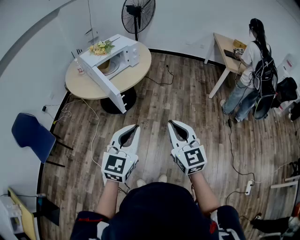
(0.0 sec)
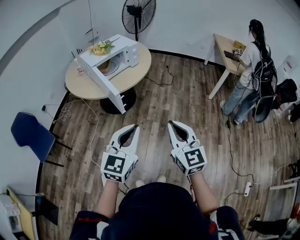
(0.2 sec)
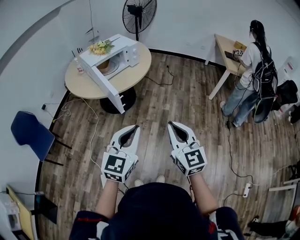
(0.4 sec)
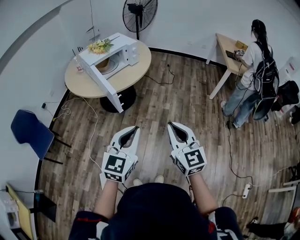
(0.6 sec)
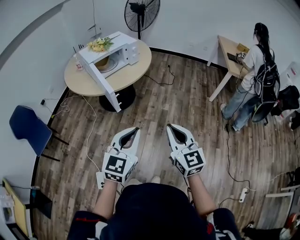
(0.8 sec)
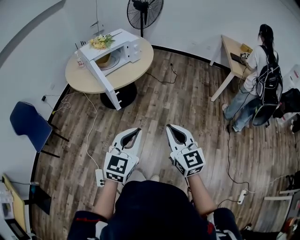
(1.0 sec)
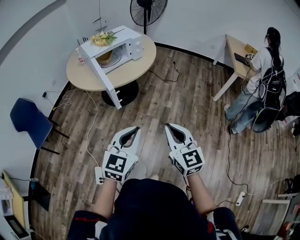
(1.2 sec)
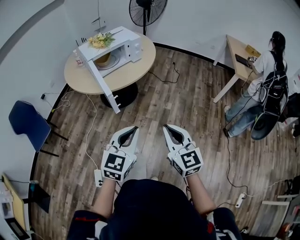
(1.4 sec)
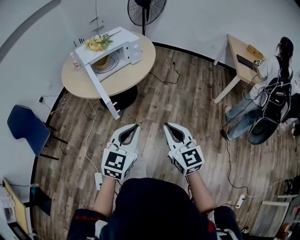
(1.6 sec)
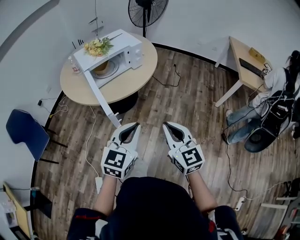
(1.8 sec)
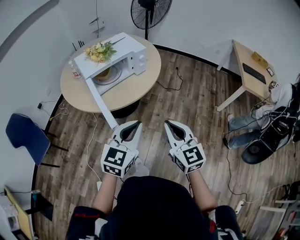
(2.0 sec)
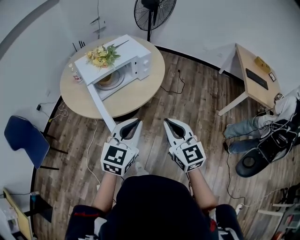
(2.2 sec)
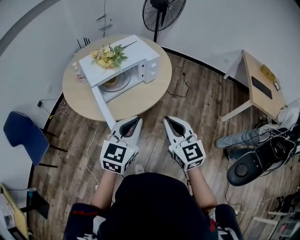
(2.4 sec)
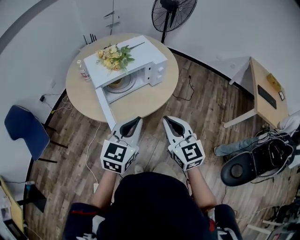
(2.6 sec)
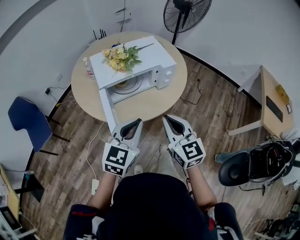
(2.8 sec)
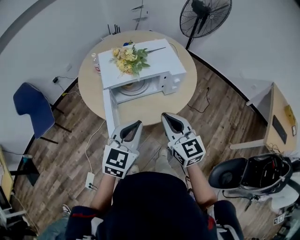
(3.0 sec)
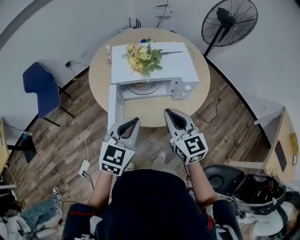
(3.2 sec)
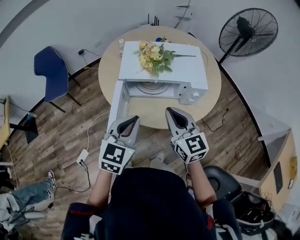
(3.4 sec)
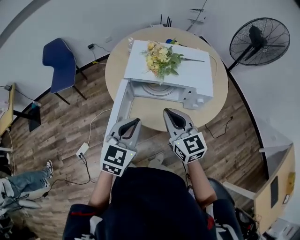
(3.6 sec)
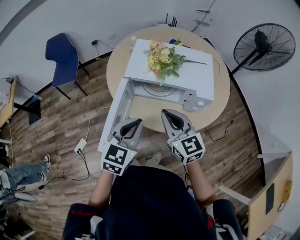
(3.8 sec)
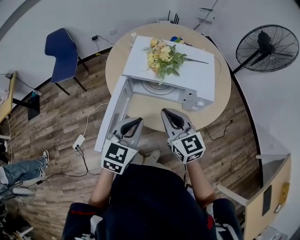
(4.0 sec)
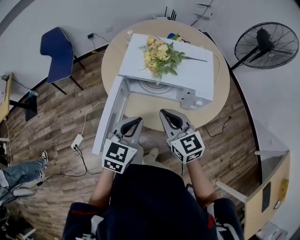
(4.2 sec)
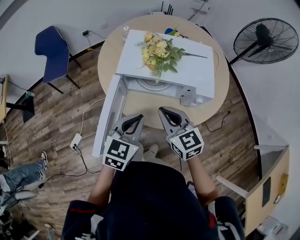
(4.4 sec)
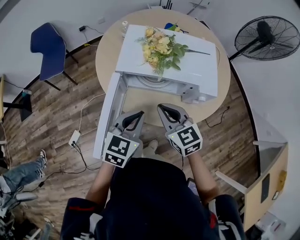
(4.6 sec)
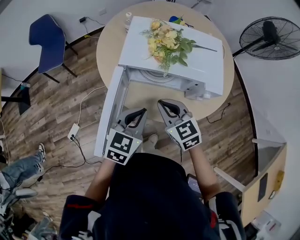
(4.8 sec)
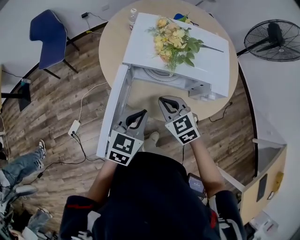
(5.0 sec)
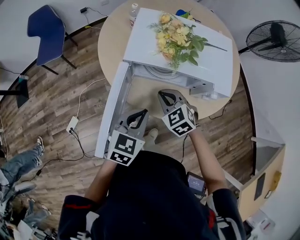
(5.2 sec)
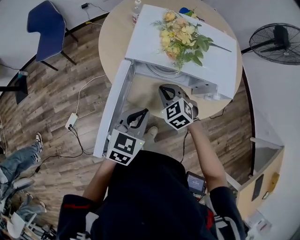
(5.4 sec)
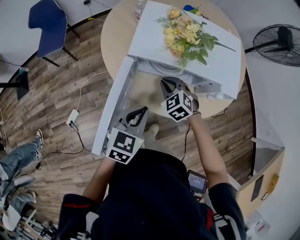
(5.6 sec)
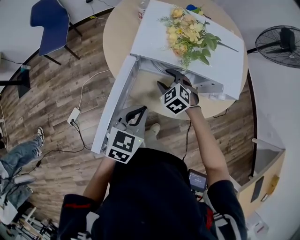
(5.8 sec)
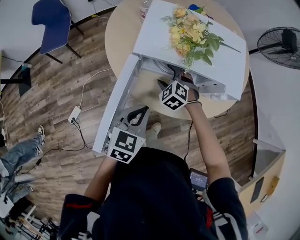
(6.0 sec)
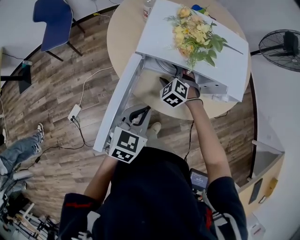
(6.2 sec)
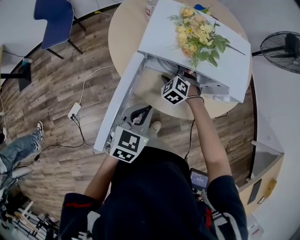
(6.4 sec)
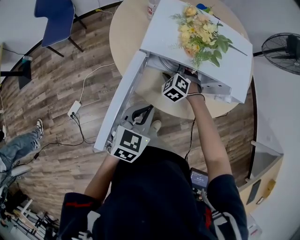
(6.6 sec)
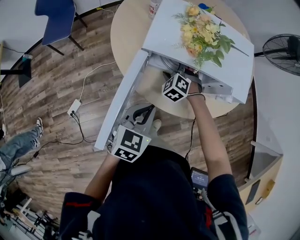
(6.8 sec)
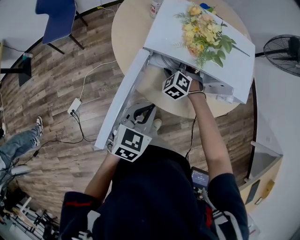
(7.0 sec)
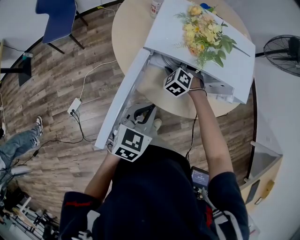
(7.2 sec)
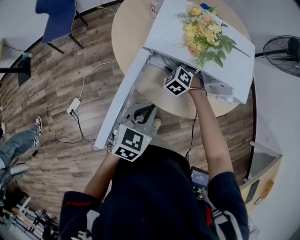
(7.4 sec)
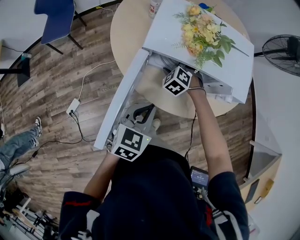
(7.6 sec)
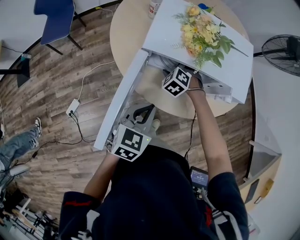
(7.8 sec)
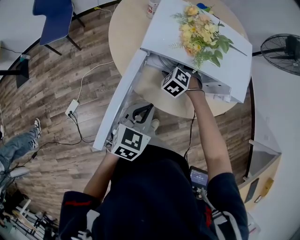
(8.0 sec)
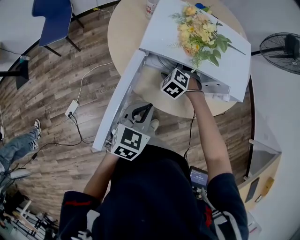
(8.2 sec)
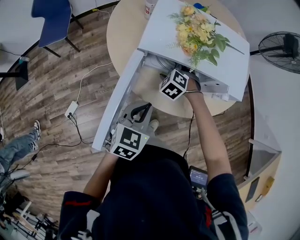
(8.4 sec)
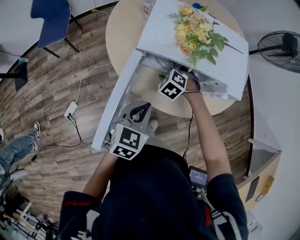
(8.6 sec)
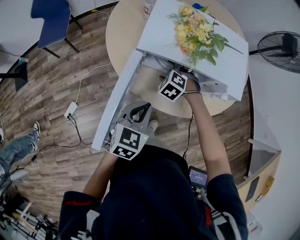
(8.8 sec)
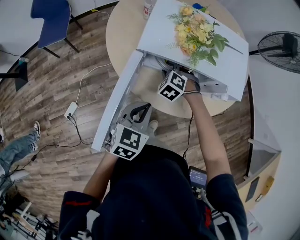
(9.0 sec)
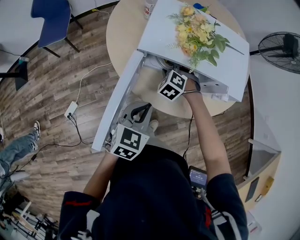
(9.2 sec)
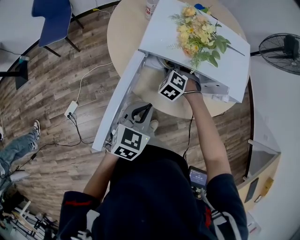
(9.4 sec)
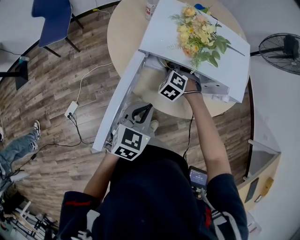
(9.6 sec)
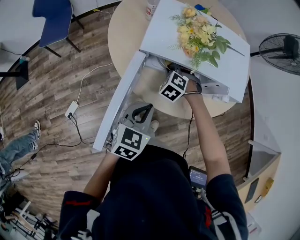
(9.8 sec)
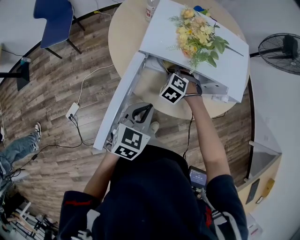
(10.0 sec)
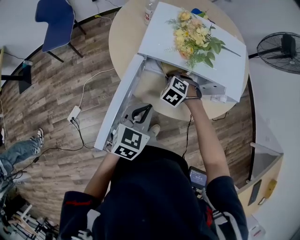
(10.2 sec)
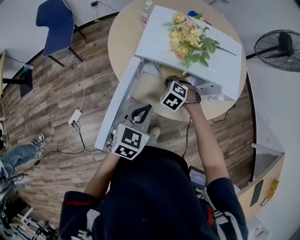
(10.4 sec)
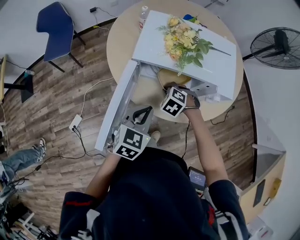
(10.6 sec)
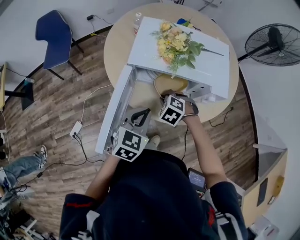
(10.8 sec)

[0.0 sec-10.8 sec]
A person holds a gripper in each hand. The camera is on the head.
0.0 sec to 1.6 sec: The two grippers go some 15 cm forward and downward.
1.6 sec to 3.0 sec: Both grippers move forward, roughly 40 cm. The left gripper rotates roughly 20 degrees, while the right gripper turns by about 20 degrees.
3.0 sec to 4.6 sec: The left gripper changes place by roughly 15 cm, and turns by roughly 30 degrees; the right gripper ends up approximately 15 cm from where it was, and turns by approximately 30 degrees.
4.6 sec to 6.2 sec: The left gripper shifts some 10 cm downward. Meanwhile the right gripper shifts approximately 25 cm downward and forward, turns by roughly 50 degrees, and opens its fingers.
6.2 sec to 7.8 sec: The grippers move only a little.
7.8 sec to 9.2 sec: The right gripper closes up.
9.2 sec to 10.8 sec: The right gripper moves backward, some 10 cm, and closes.

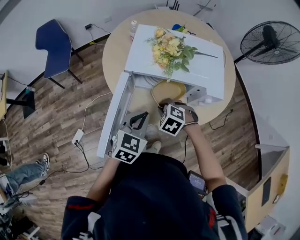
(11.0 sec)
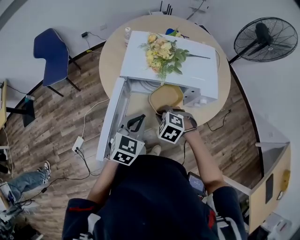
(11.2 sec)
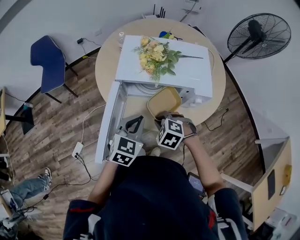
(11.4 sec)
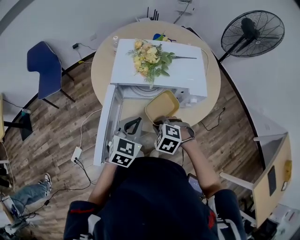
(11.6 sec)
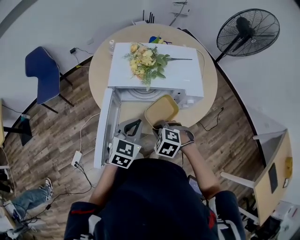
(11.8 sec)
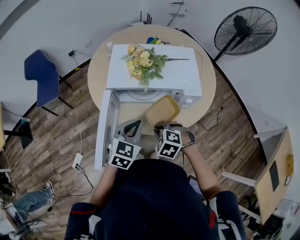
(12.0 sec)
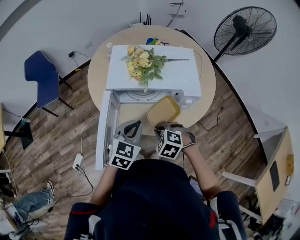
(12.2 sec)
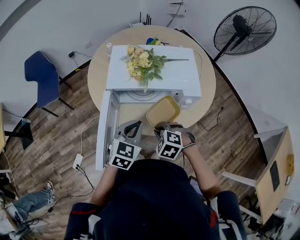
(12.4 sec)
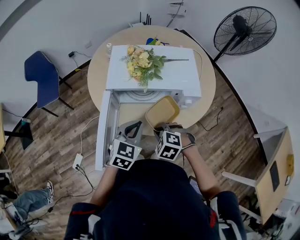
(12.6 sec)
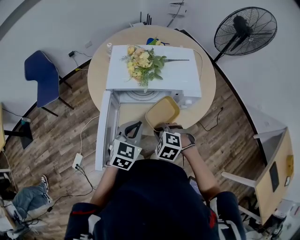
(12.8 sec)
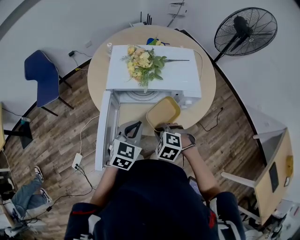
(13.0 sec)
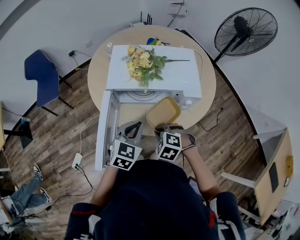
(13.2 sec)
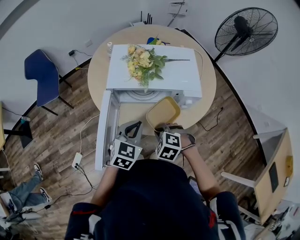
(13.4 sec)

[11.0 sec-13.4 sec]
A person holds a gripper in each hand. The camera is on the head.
11.0 sec to 12.2 sec: The right gripper is displaced backward by some 10 cm.
12.2 sec to 13.4 sec: Neither gripper changes place.

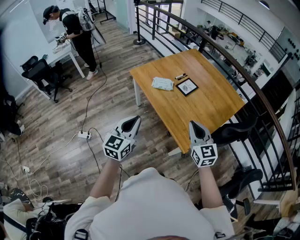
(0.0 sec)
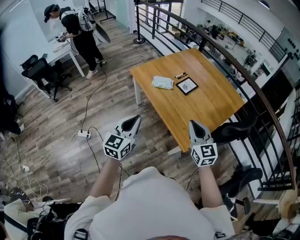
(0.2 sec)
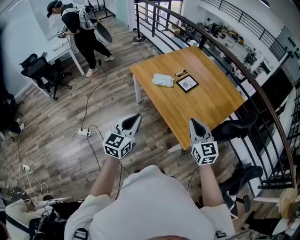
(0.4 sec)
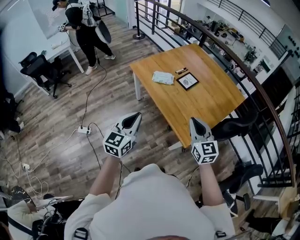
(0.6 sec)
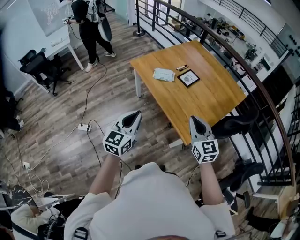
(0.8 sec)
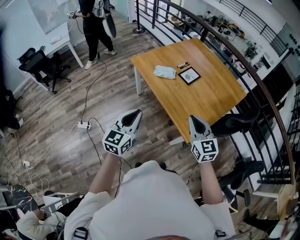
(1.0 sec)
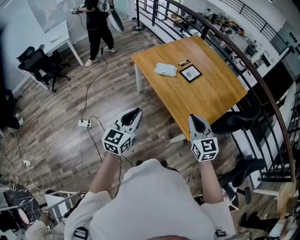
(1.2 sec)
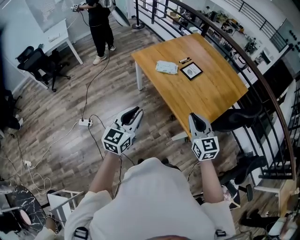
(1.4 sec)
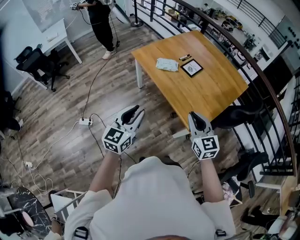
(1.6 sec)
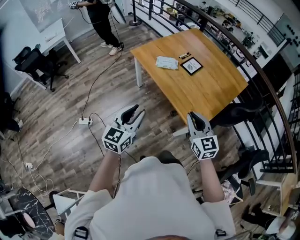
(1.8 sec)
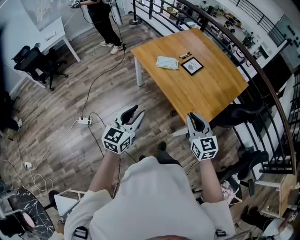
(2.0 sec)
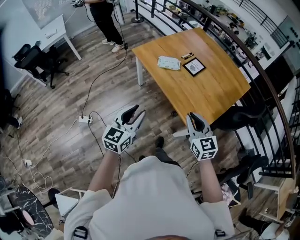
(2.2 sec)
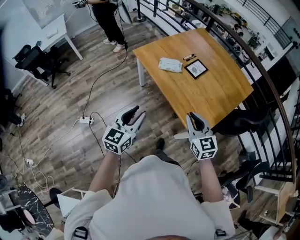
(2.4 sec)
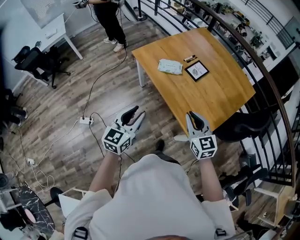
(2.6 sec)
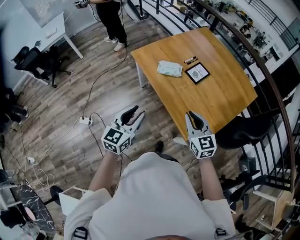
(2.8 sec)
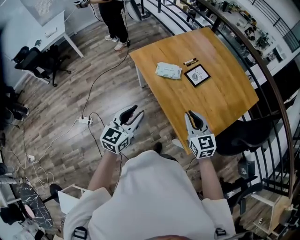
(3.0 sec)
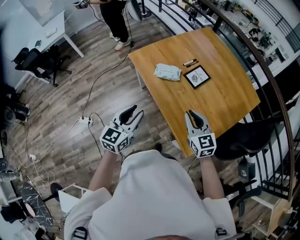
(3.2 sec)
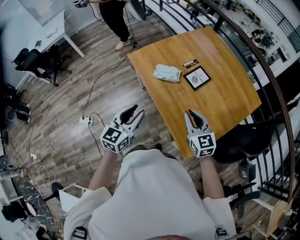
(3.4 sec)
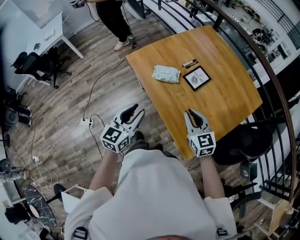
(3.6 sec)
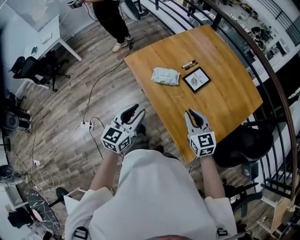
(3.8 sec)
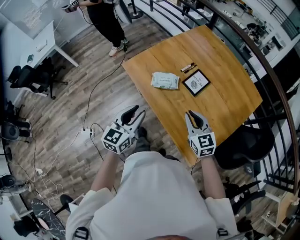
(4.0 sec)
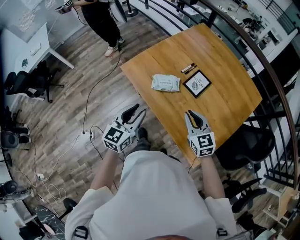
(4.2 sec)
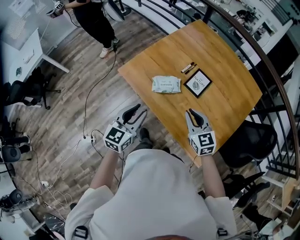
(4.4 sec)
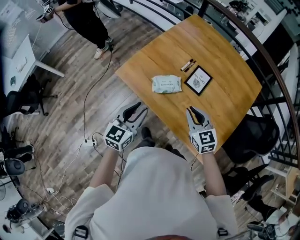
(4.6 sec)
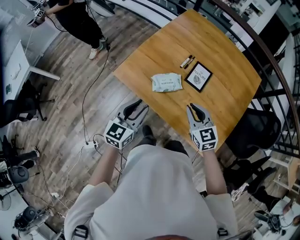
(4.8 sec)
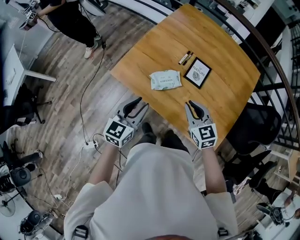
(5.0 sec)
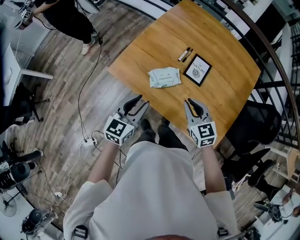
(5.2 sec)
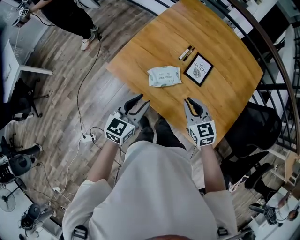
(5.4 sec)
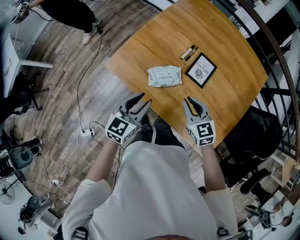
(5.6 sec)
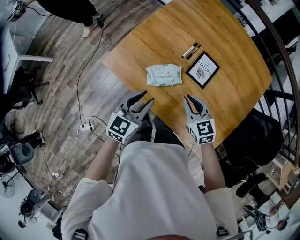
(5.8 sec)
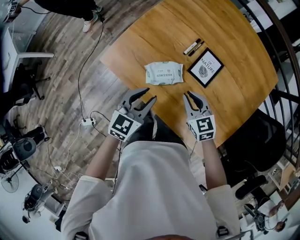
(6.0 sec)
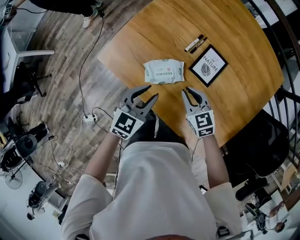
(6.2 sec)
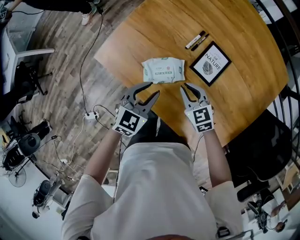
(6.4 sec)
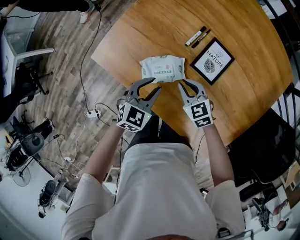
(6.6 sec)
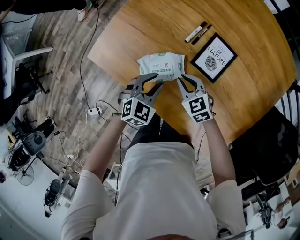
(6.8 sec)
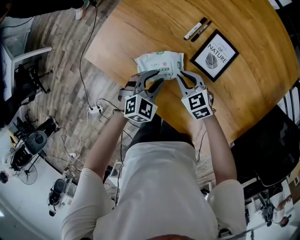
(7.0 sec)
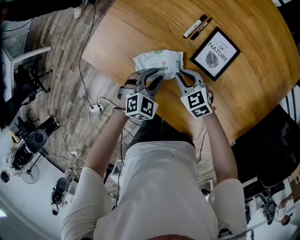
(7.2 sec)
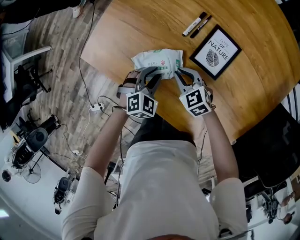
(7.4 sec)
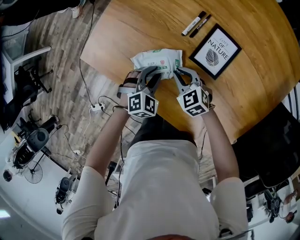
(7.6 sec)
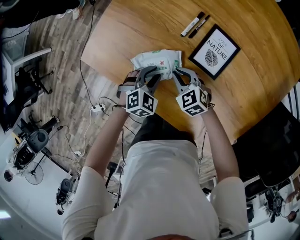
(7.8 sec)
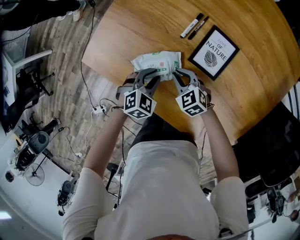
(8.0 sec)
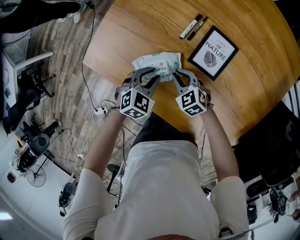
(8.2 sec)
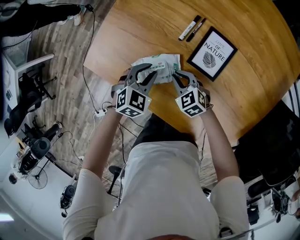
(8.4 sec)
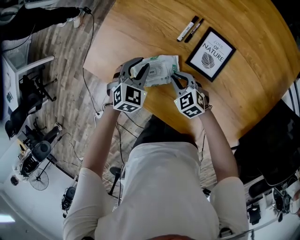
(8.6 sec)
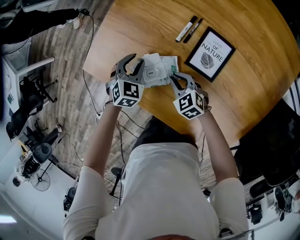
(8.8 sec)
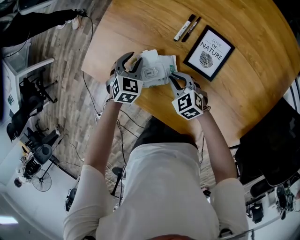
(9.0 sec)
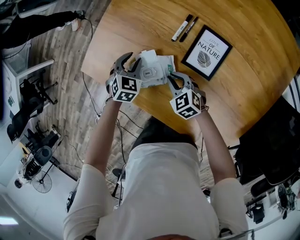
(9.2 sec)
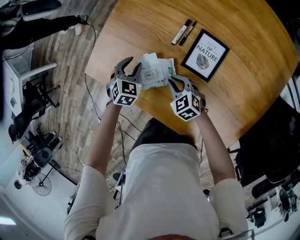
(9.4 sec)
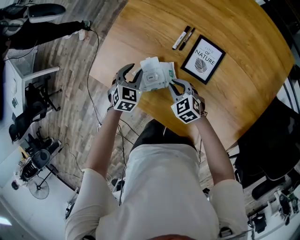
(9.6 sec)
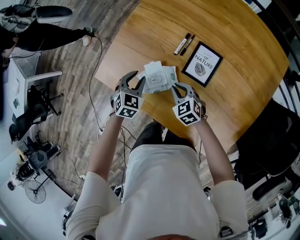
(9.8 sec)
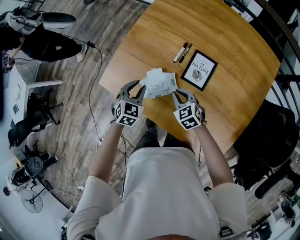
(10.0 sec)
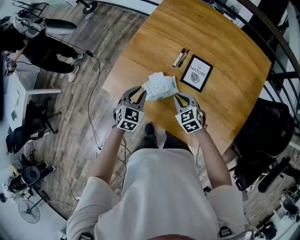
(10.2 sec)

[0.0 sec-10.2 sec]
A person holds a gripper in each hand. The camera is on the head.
0.0 sec to 1.4 sec: The left gripper changes place by roughly 5 cm. The right gripper is displaced to the left by roughly 5 cm.
1.4 sec to 3.0 sec: Both grippers travel together forward, roughly 20 cm.
3.0 sec to 4.4 sec: Both grippers travel together forward, some 20 cm.
4.4 sec to 5.8 sec: Both grippers travel together forward and downward, about 20 cm.
5.8 sec to 7.2 sec: The right gripper moves downward, roughly 20 cm; the left gripper is displaced downward and to the right by about 25 cm, and turns by some 40 degrees.
7.2 sec to 8.8 sec: The left gripper goes roughly 10 cm forward.
8.8 sec to 10.2 sec: The right gripper moves upward, approximately 15 cm; the left gripper travels upward and backward by some 15 cm.
